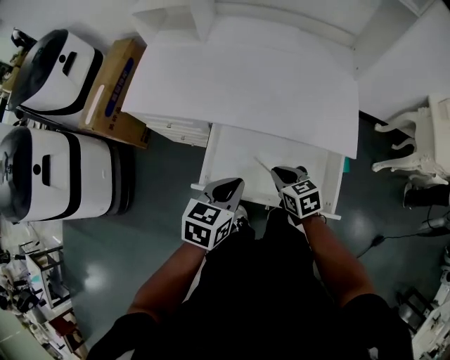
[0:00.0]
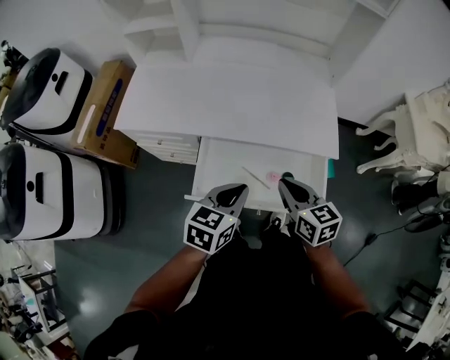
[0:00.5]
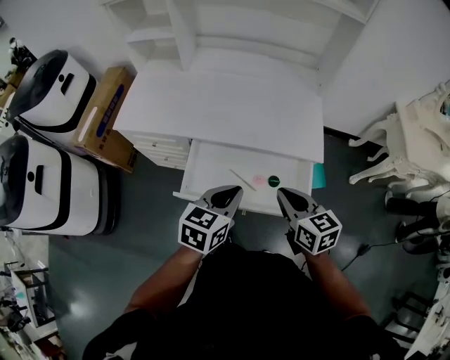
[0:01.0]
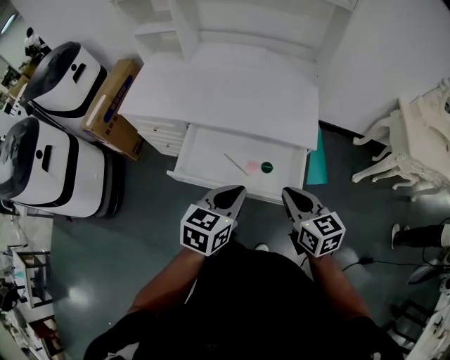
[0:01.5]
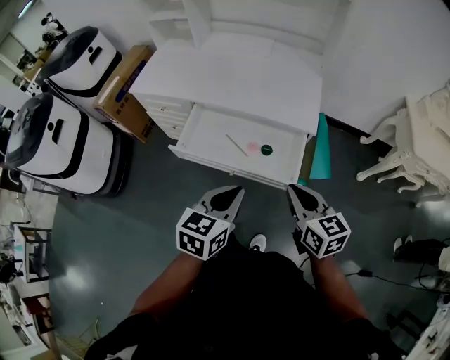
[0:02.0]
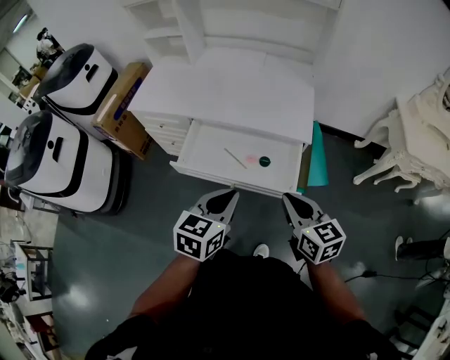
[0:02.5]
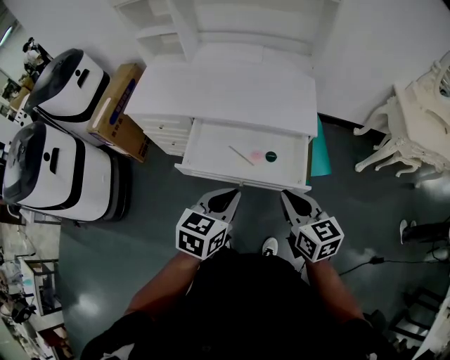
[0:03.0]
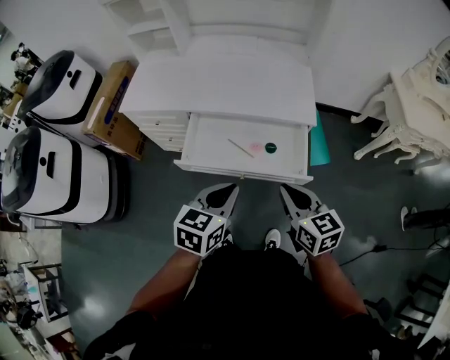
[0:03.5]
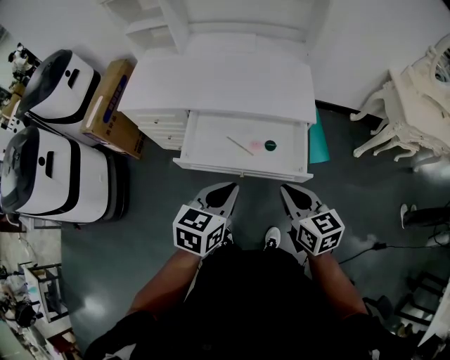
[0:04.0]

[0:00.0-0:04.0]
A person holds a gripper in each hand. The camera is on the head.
0:00.0 to 0:02.0: Both grippers move backward, to the right and upward, approximately 30 cm. The right gripper changes its angle by about 20 degrees.
0:02.0 to 0:04.0: Both grippers travel together to the left, some 10 cm.

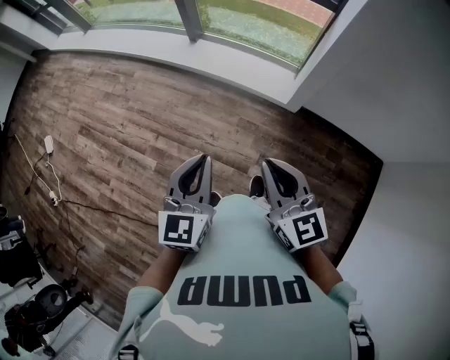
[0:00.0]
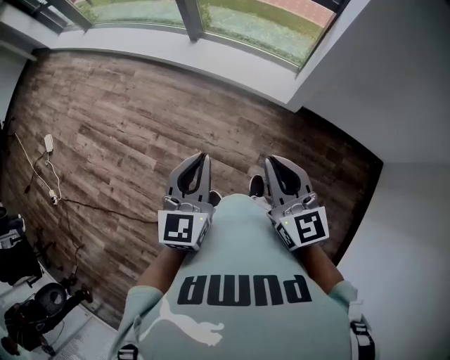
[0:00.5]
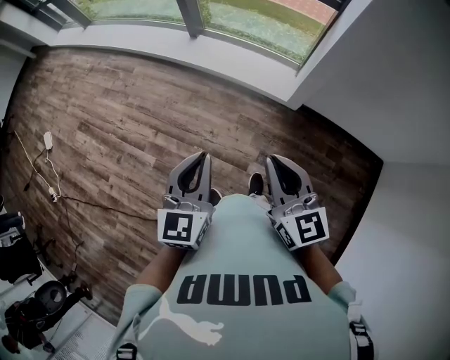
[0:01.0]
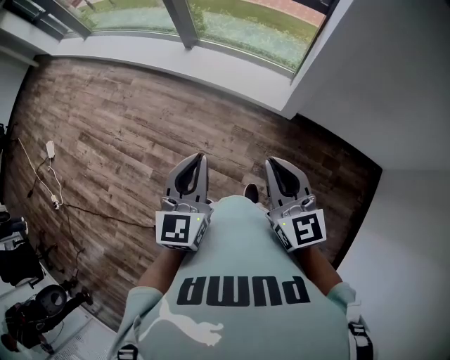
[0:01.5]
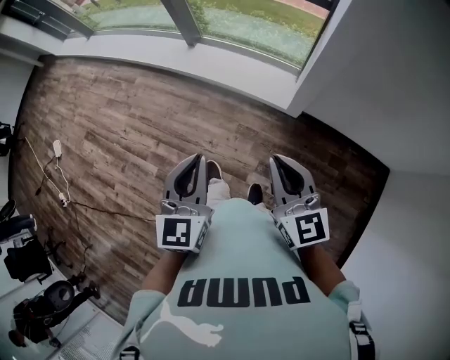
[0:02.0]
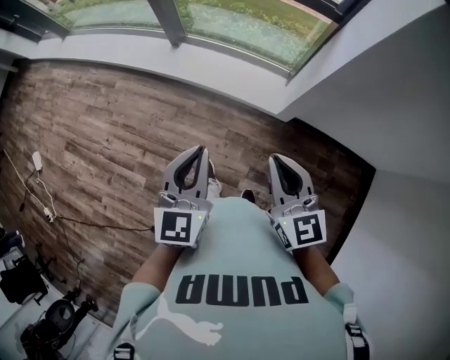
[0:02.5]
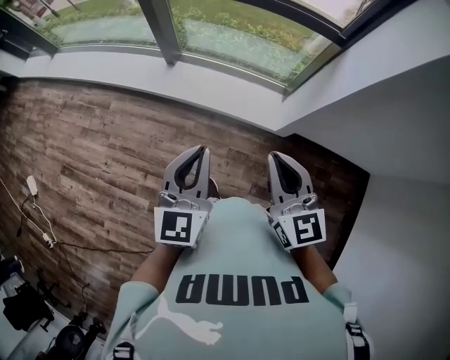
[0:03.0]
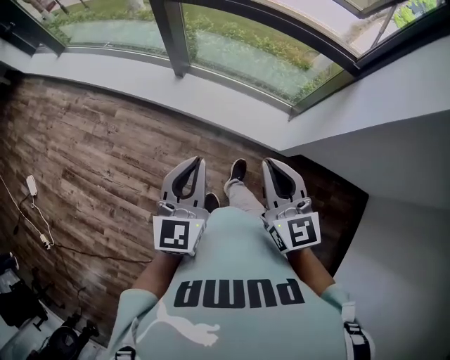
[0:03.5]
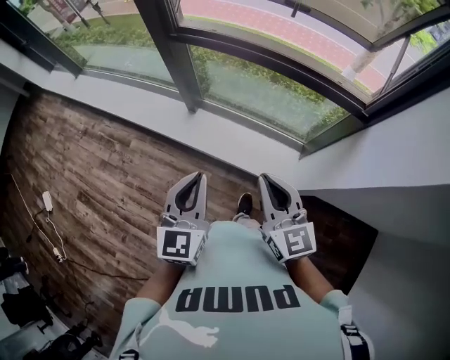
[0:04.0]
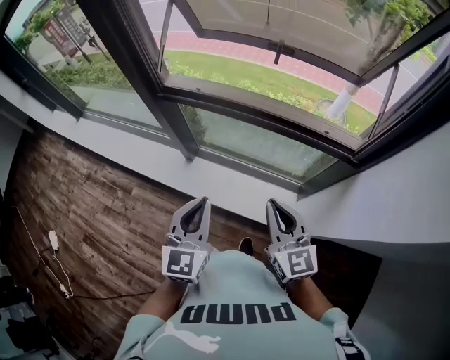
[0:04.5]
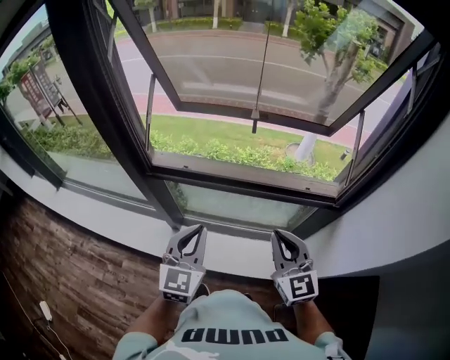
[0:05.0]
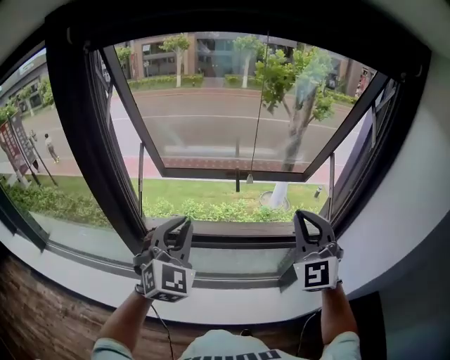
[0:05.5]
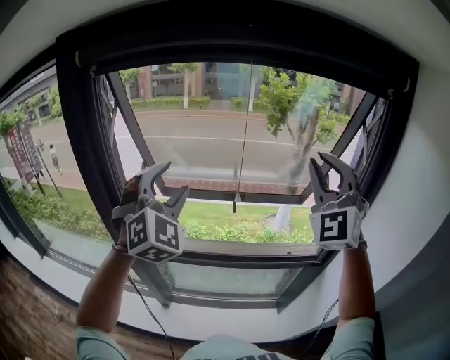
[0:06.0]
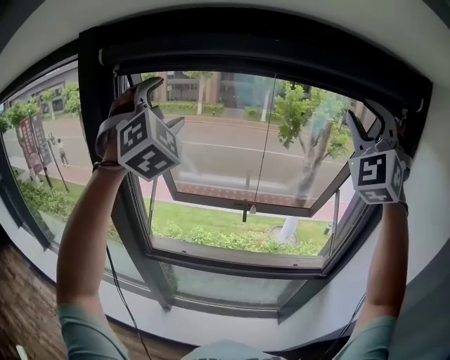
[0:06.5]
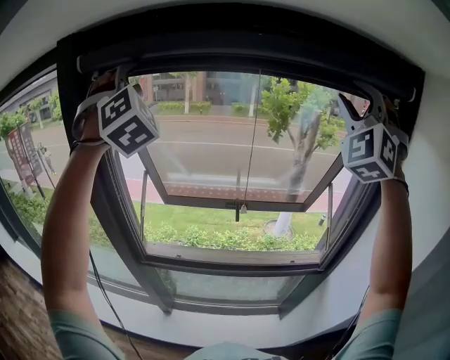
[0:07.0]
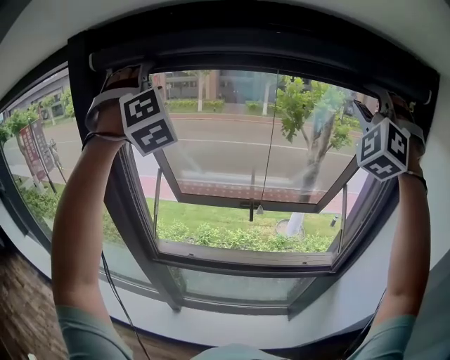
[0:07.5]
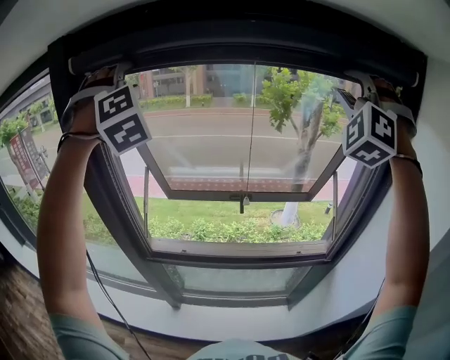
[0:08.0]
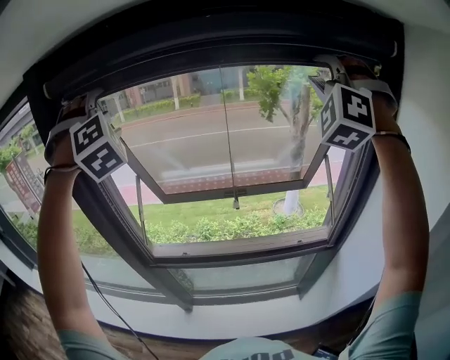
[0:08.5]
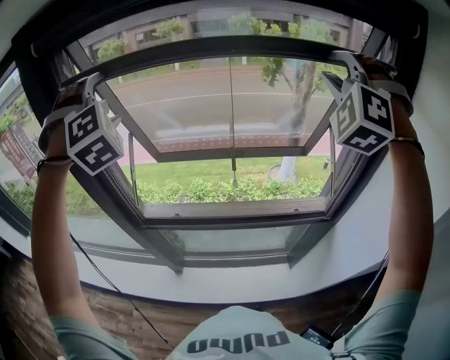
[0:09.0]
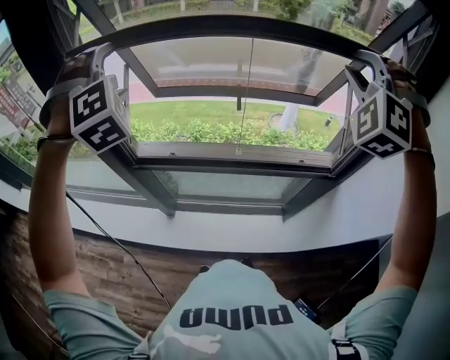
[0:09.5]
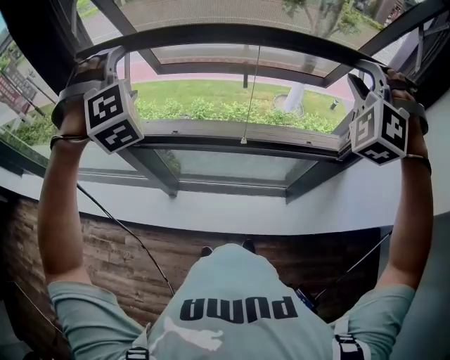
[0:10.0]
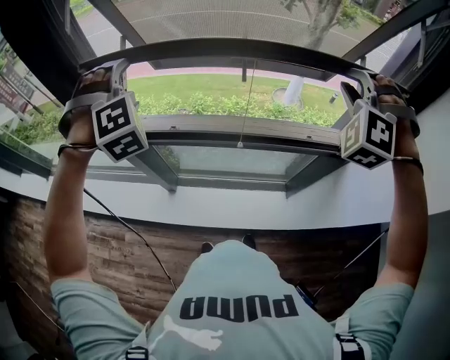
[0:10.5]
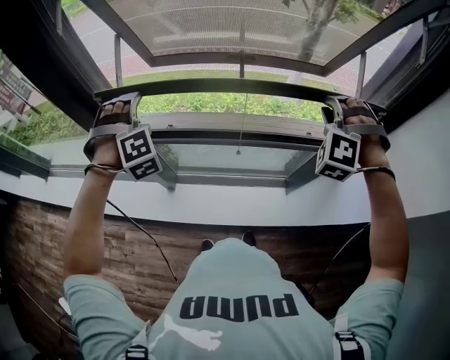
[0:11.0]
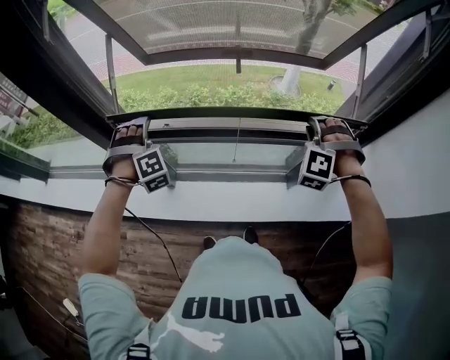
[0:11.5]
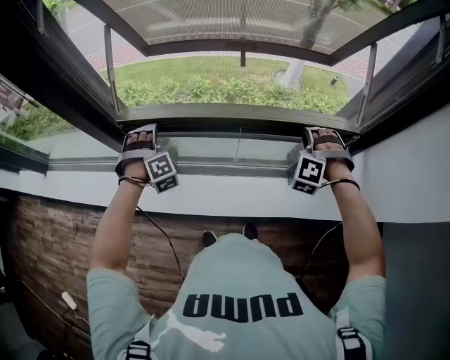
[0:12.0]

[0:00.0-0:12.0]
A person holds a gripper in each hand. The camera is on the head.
0:00.0 to 0:02.0: Both grippers travel together to the right and forward, about 15 cm.
0:02.0 to 0:04.0: The pair of grippers is taken forward, some 40 cm.
0:04.0 to 0:06.0: The left gripper ends up some 50 cm from where it was, rotates around the line of its fingers by roughly 60 degrees, clockwise from behind, and opens its fingers; the right gripper shifts about 40 cm upward, and rotates around the line of its fingers by approximately 70 degrees, counterclockwise from behind.
0:06.0 to 0:08.0: The right gripper heads upward and forward, covering roughly 15 cm, swivels roughly 40 degrees, and opens up. Meanwhile the left gripper moves upward, forward and to the left, about 25 cm, and swivels some 40 degrees.
0:08.0 to 0:10.0: The two grippers go some 30 cm downward. The left gripper swivels approximately 20 degrees, while the right gripper rotates some 30 degrees.
0:10.0 to 0:12.0: Both grippers move downward, about 35 cm. The right gripper turns by roughly 20 degrees.

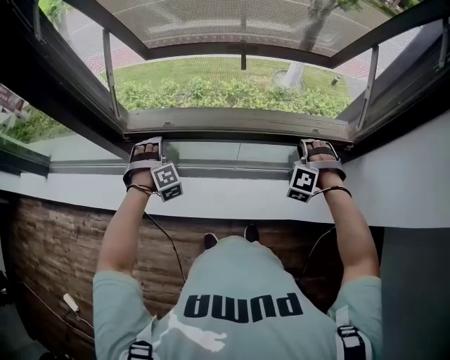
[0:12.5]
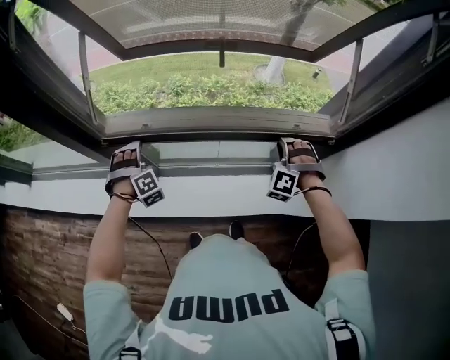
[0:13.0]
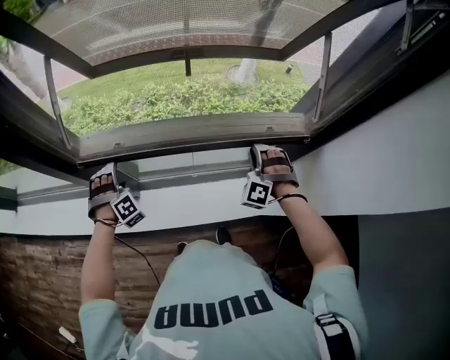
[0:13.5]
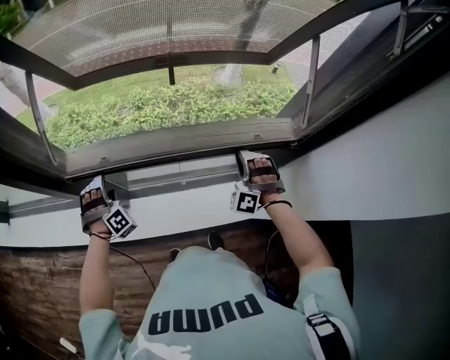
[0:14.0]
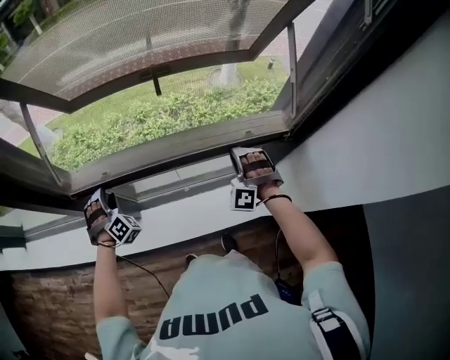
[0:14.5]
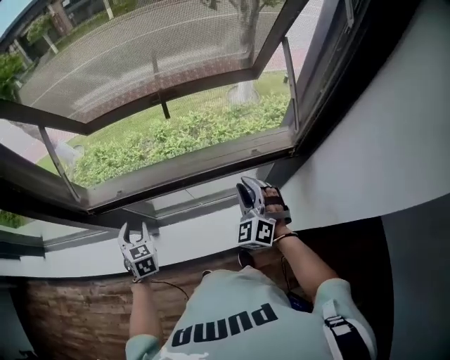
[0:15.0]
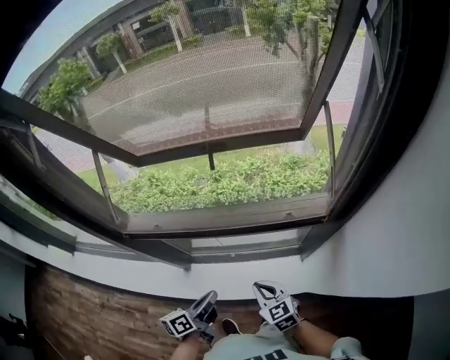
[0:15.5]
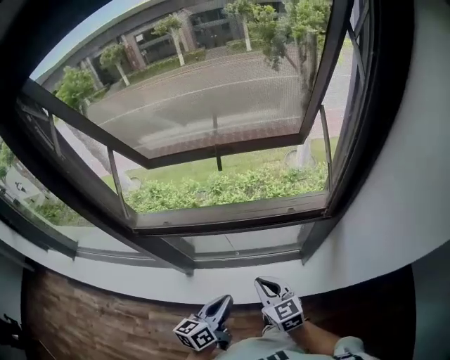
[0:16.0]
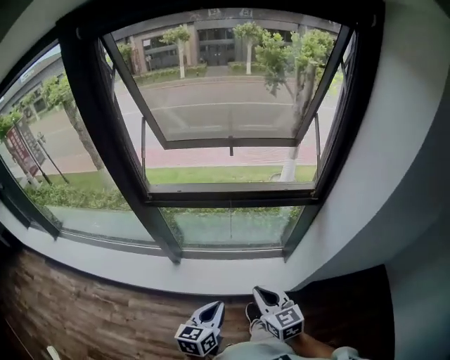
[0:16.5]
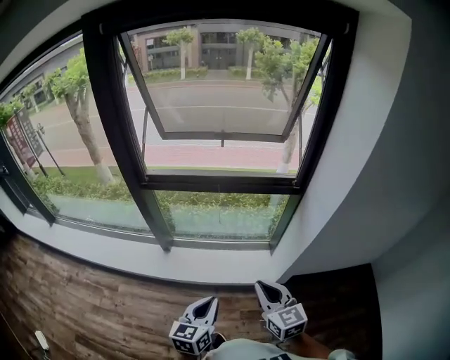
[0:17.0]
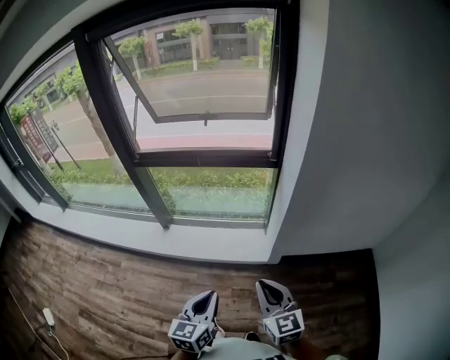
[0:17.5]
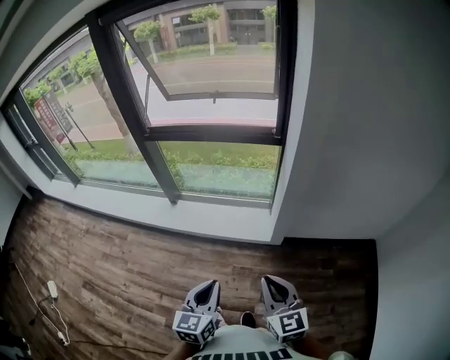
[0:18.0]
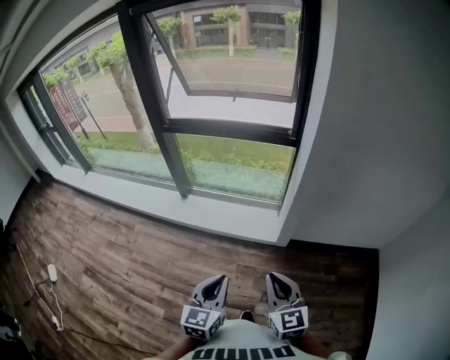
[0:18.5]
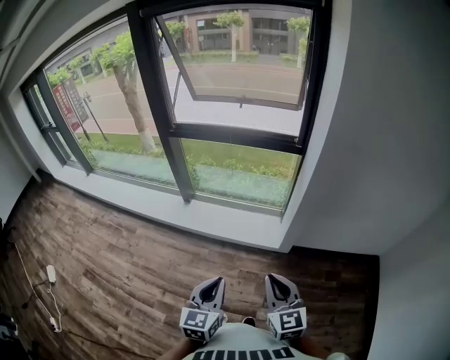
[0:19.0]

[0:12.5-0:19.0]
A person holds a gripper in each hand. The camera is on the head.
0:12.5 to 0:14.5: The left gripper rotates about 20 degrees, and closes its fingers.
0:14.5 to 0:17.0: The two grippers travel together, backward, approximately 60 cm. The left gripper rotates around the line of its fingers by roughly 80 degrees, counterclockwise from behind, and closes its fingers; the right gripper twists roughly 80 degrees clockwise, seen from behind, and closes its fingers.
0:17.0 to 0:19.0: Both grippers travel together backward and to the right, roughly 30 cm.

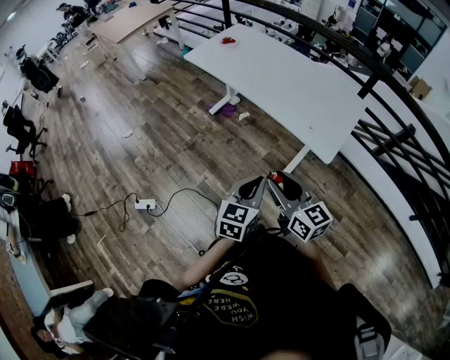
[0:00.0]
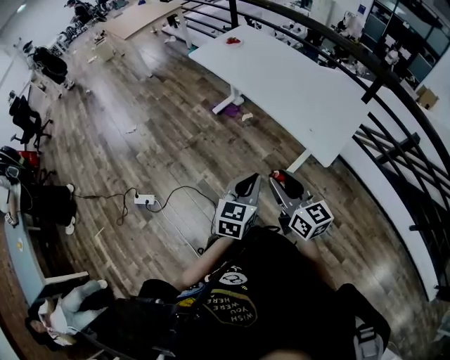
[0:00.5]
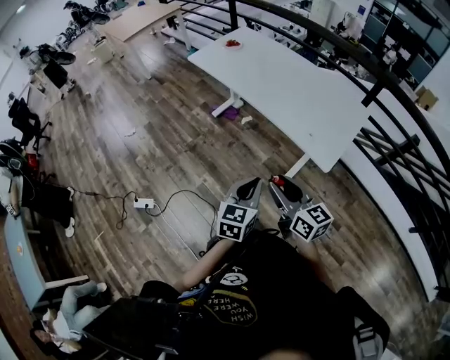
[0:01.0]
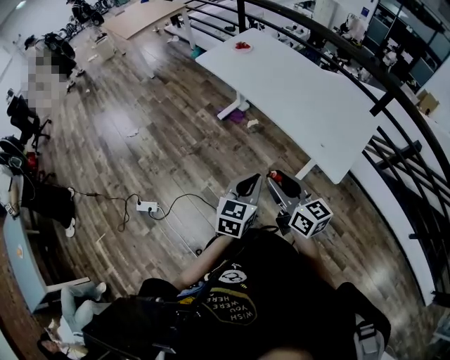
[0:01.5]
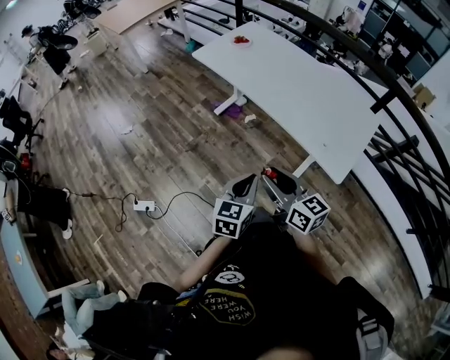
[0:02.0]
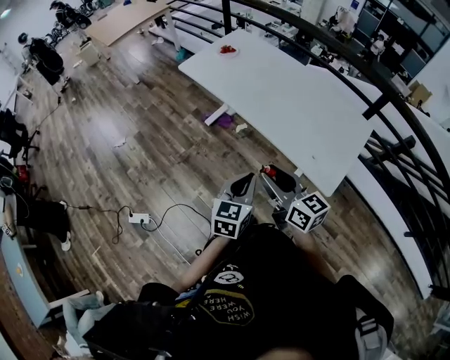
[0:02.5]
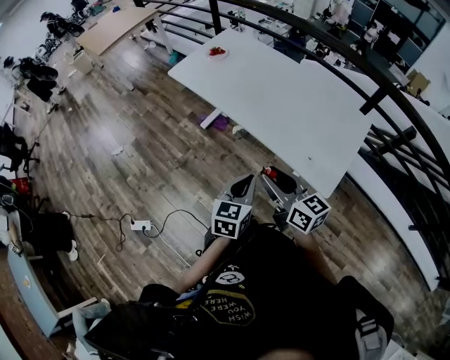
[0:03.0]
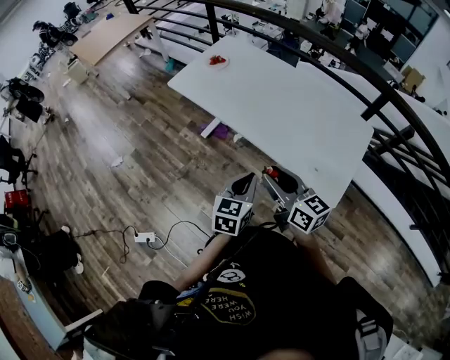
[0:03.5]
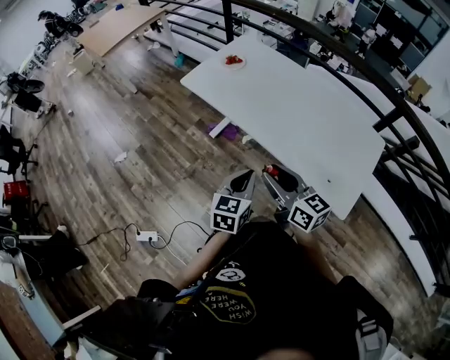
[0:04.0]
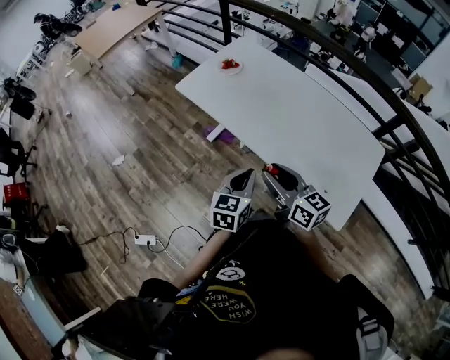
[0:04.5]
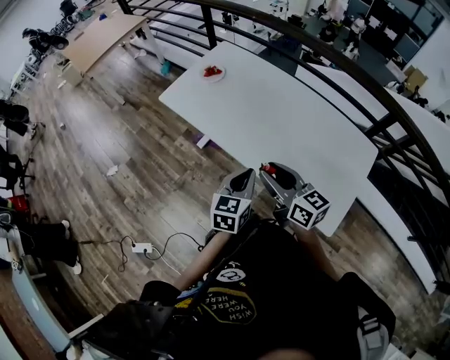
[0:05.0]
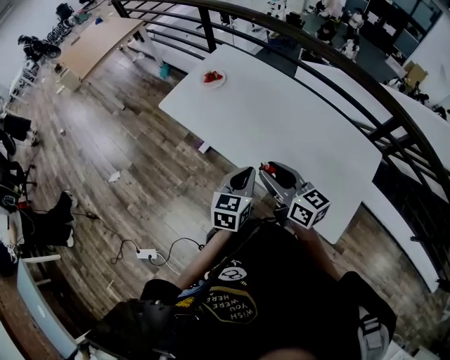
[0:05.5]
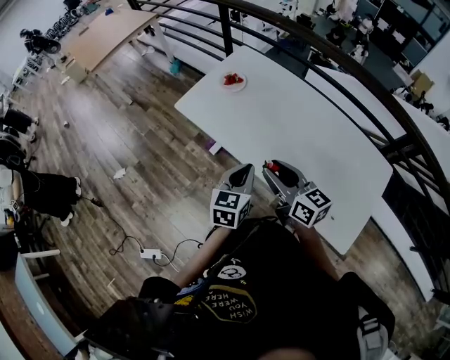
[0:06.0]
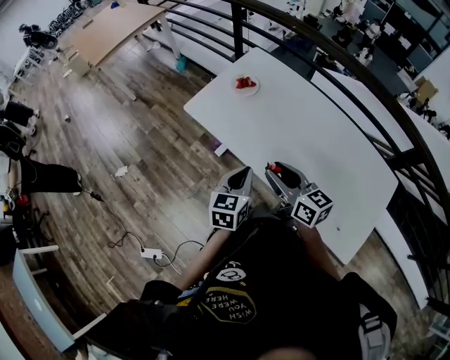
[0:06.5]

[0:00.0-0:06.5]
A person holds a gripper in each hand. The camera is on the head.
0:00.0 to 0:02.0: The grippers both shift forward and to the left by roughly 15 cm.
0:02.0 to 0:04.5: The two grippers go roughly 30 cm forward.
0:04.5 to 0:06.5: The grippers both shift forward by roughly 20 cm.
